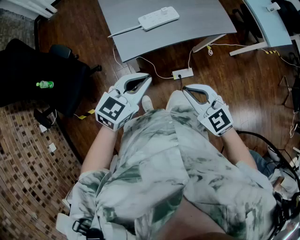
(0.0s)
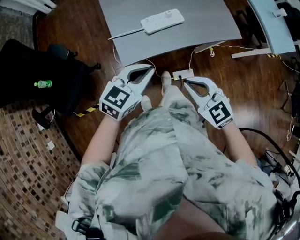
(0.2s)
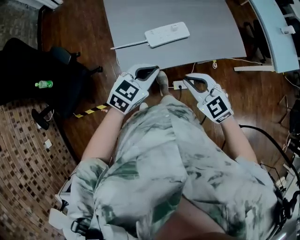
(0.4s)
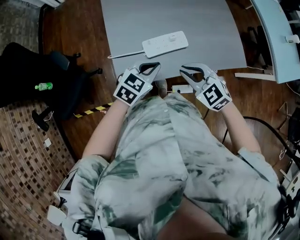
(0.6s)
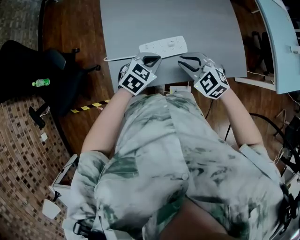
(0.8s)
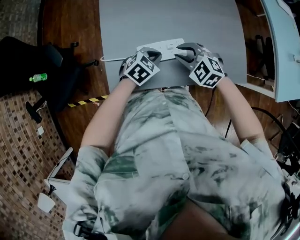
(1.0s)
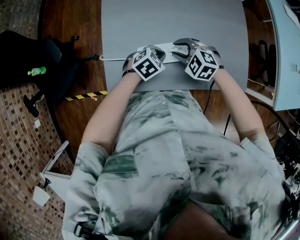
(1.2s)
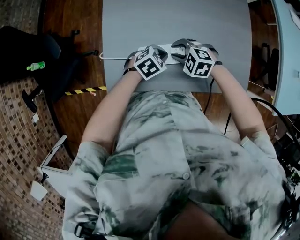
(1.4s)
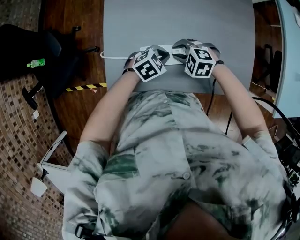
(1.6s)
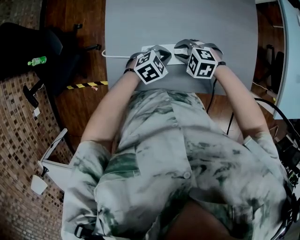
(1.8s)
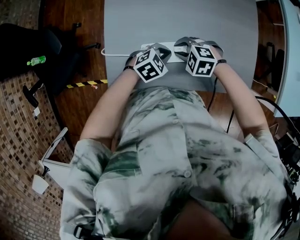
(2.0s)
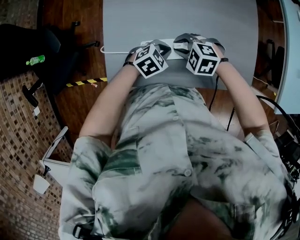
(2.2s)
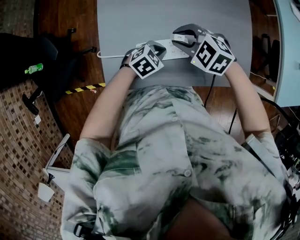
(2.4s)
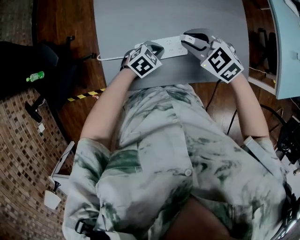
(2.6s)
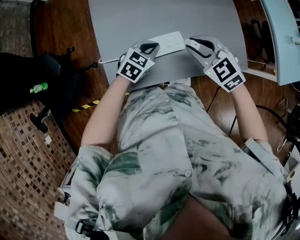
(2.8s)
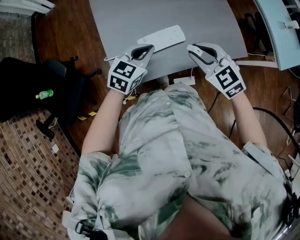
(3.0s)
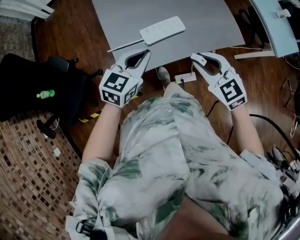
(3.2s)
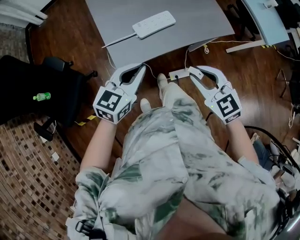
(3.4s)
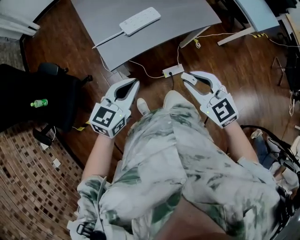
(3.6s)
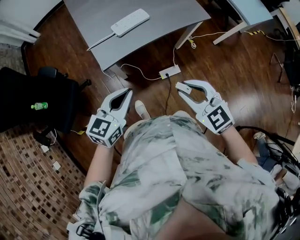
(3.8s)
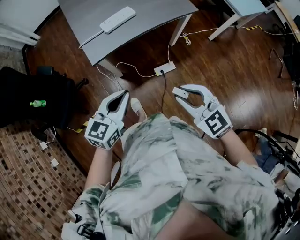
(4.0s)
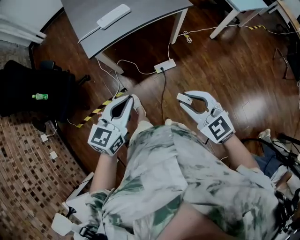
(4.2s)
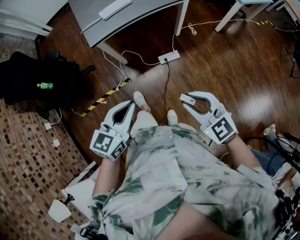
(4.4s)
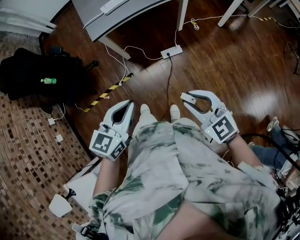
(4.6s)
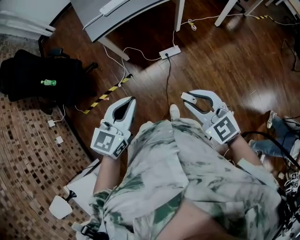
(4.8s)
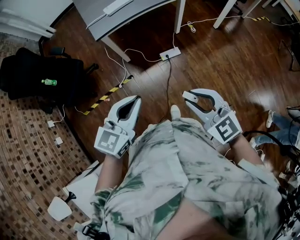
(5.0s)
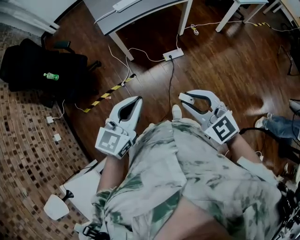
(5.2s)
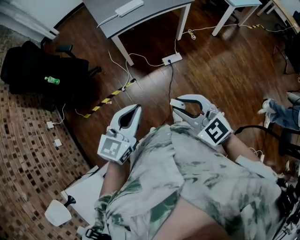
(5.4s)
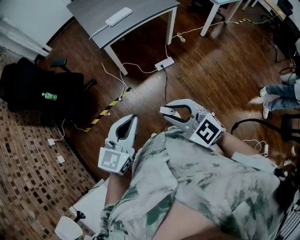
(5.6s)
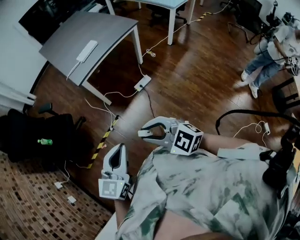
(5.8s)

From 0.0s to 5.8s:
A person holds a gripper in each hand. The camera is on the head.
From 0.0s to 1.4s: The left gripper shifts by roughly 40 cm, and tips its fingers downward by about 30 degrees, while the right gripper ends up some 40 cm from where it was, turns by approximately 60 degrees, and opens.
From 1.4s to 2.8s: The left gripper travels upward by some 5 cm. The right gripper goes approximately 15 cm upward, and swivels roughly 40 degrees.
From 2.8s to 4.4s: Both grippers are carried backward, some 60 cm. The right gripper rotates about 30 degrees.
From 4.4s to 5.8s: The left gripper travels backward and to the left by about 20 cm; the right gripper shifts approximately 25 cm to the left and backward.

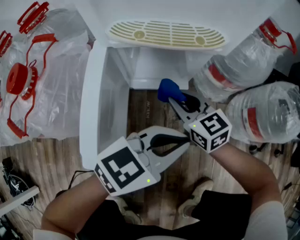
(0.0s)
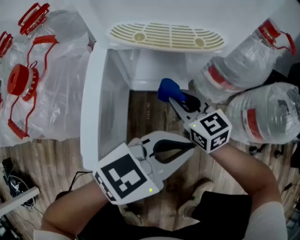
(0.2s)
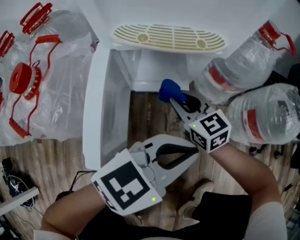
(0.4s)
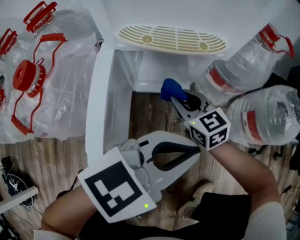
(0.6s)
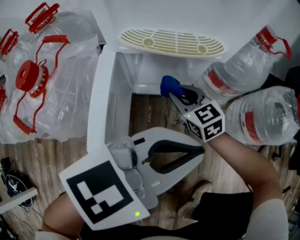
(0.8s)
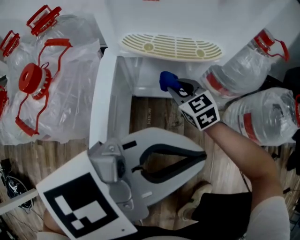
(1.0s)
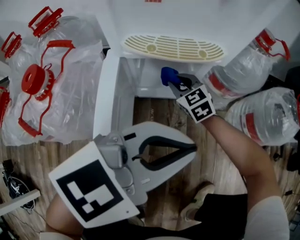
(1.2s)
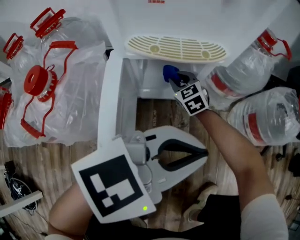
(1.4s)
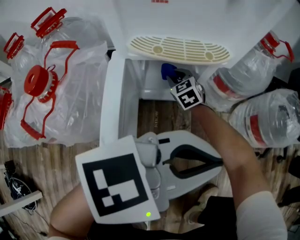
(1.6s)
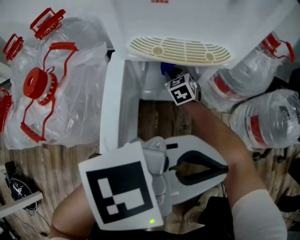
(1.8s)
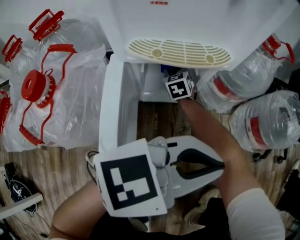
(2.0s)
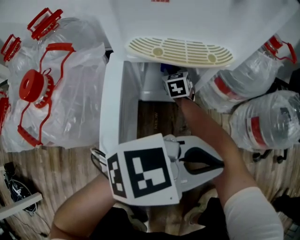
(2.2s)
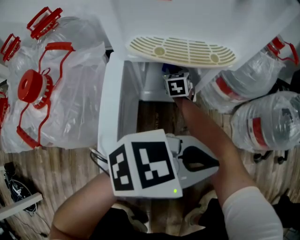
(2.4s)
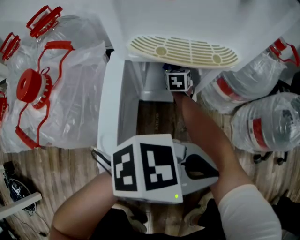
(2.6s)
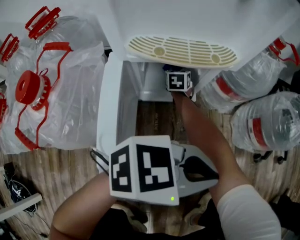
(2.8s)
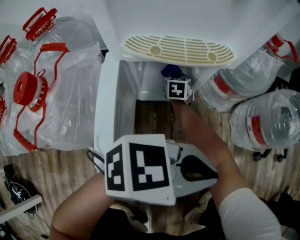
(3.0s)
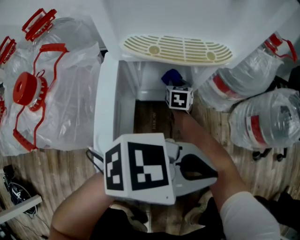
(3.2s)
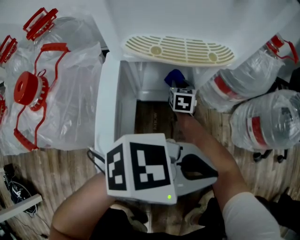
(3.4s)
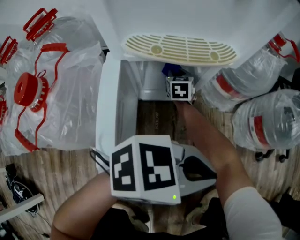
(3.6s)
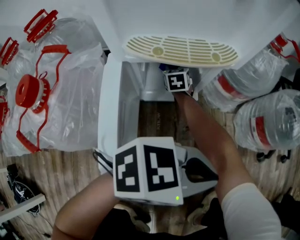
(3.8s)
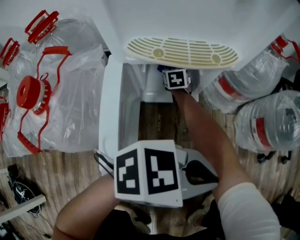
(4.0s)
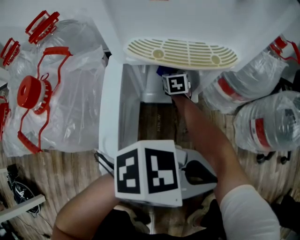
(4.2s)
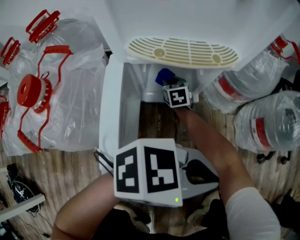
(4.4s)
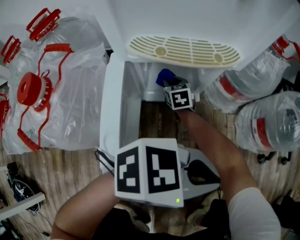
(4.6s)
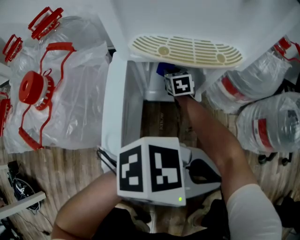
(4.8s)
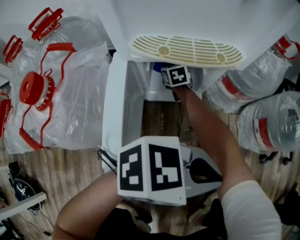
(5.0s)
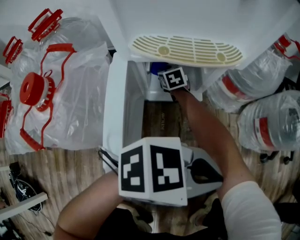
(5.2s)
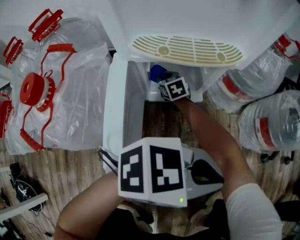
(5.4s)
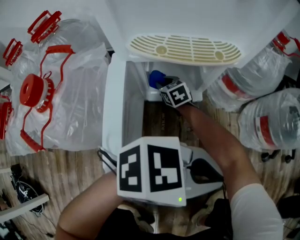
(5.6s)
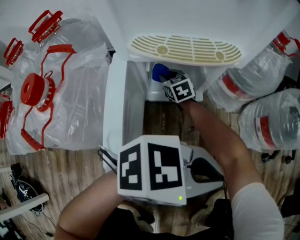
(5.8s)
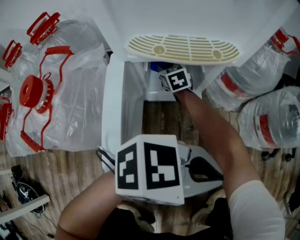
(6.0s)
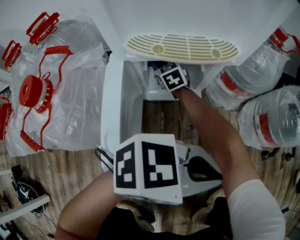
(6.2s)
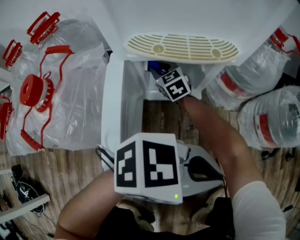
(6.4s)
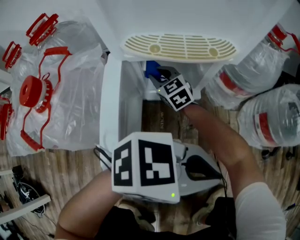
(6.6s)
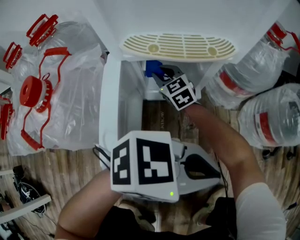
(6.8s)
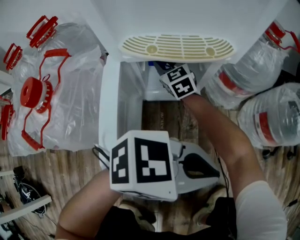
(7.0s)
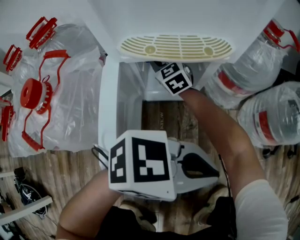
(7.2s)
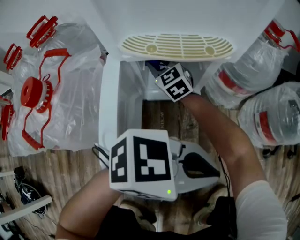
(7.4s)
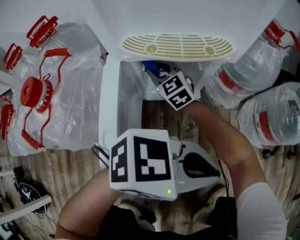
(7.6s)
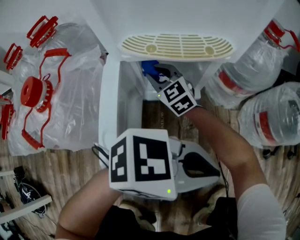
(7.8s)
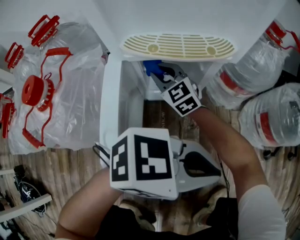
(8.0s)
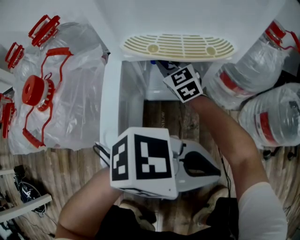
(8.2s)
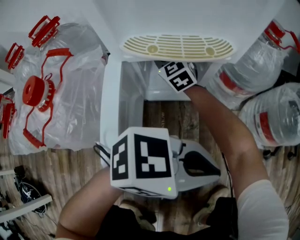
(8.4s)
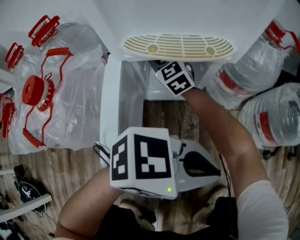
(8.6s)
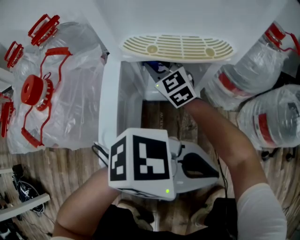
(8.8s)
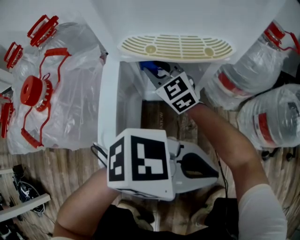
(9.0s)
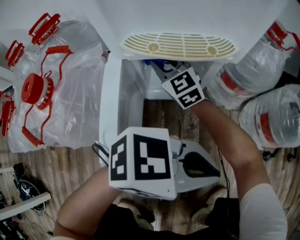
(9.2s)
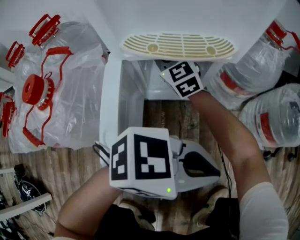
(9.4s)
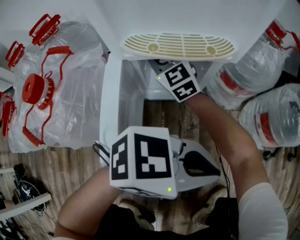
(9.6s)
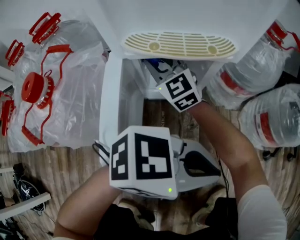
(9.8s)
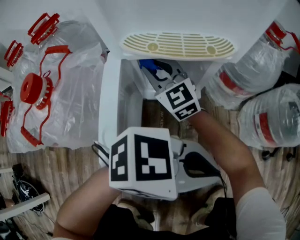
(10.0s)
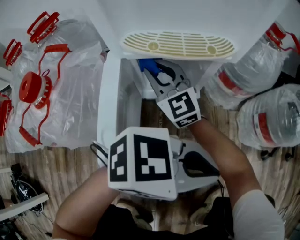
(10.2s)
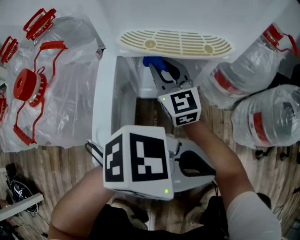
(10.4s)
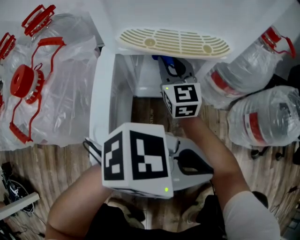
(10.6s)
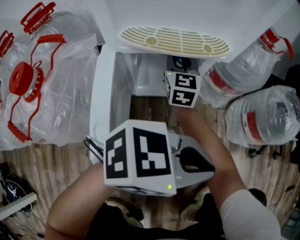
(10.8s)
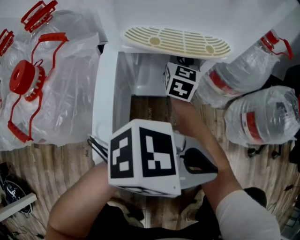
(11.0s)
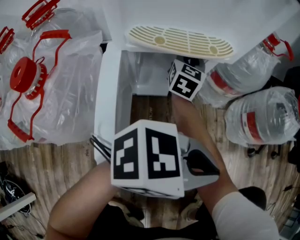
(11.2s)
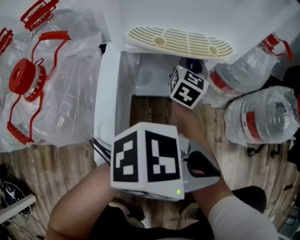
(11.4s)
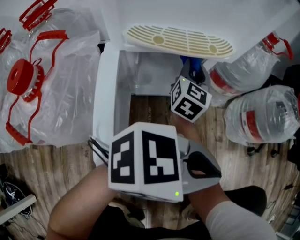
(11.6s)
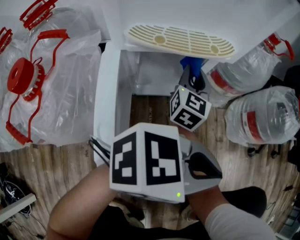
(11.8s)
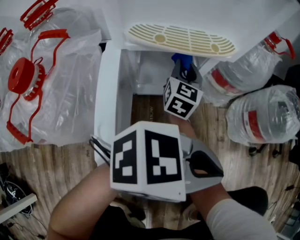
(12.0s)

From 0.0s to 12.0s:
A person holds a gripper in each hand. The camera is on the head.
From 0.0s to 1.6s: The right gripper heads forward, downward and to the left, covering approximately 15 cm, and swivels roughly 30 degrees; the left gripper shifts approximately 15 cm upward, and rotates some 20 degrees.
From 1.6s to 3.0s: The right gripper is displaced downward and forward by about 10 cm, and rotates approximately 40 degrees. The left gripper travels downward by about 5 cm, and swivels about 20 degrees.
From 3.0s to 4.4s: The right gripper goes left and right, some 10 cm each way, reversing 2 times.
From 4.4s to 6.0s: The right gripper changes place by roughly 10 cm.
From 6.0s to 7.6s: The right gripper travels upward by roughly 10 cm, and swivels approximately 20 degrees.
From 9.0s to 10.4s: The right gripper shifts by about 5 cm.
From 10.4s to 12.0s: The right gripper moves roughly 10 cm, and changes its angle by some 40 degrees.

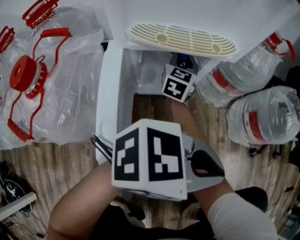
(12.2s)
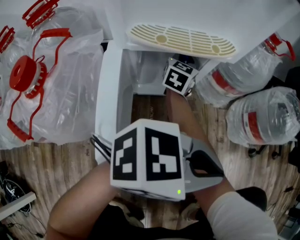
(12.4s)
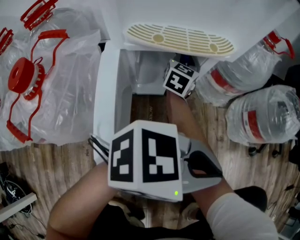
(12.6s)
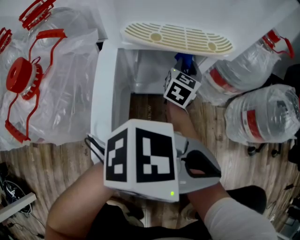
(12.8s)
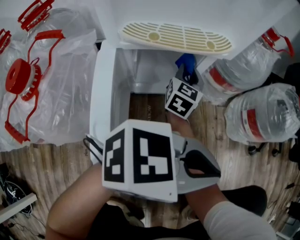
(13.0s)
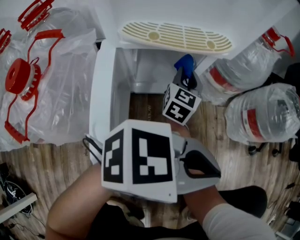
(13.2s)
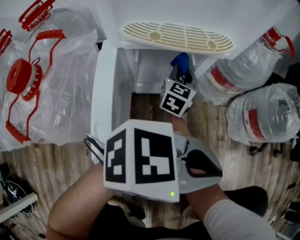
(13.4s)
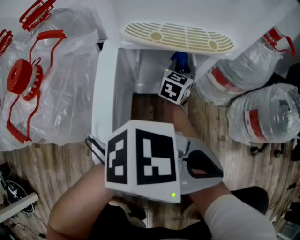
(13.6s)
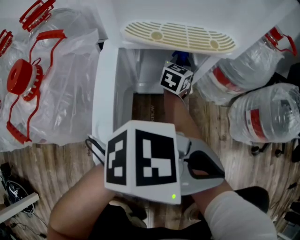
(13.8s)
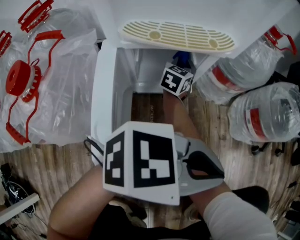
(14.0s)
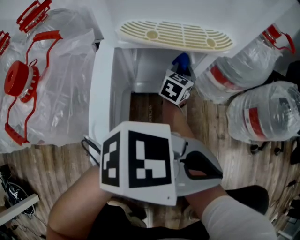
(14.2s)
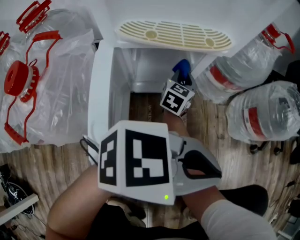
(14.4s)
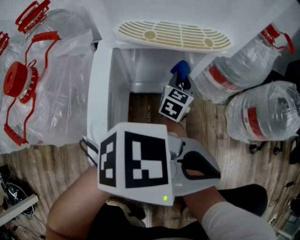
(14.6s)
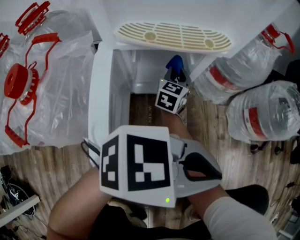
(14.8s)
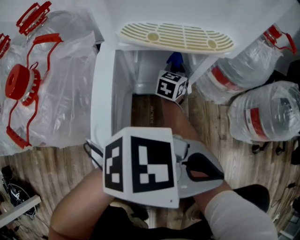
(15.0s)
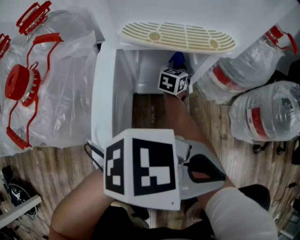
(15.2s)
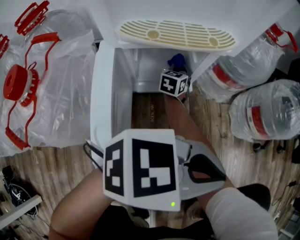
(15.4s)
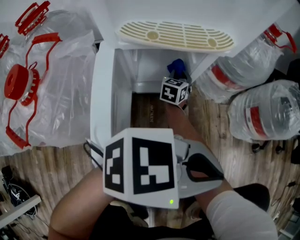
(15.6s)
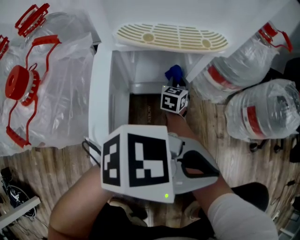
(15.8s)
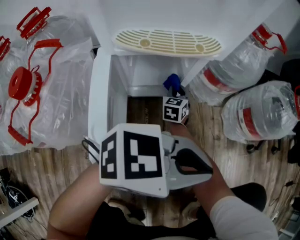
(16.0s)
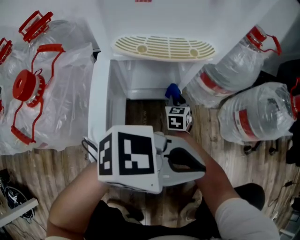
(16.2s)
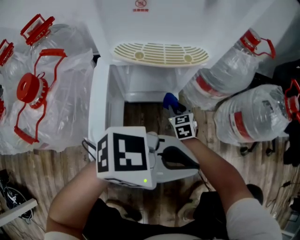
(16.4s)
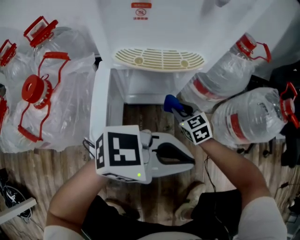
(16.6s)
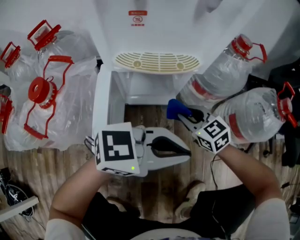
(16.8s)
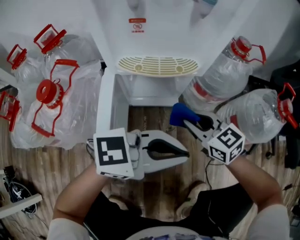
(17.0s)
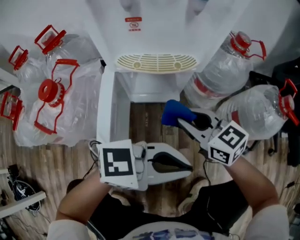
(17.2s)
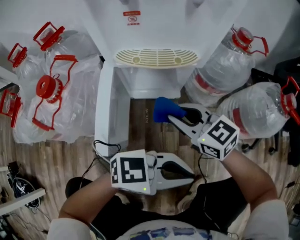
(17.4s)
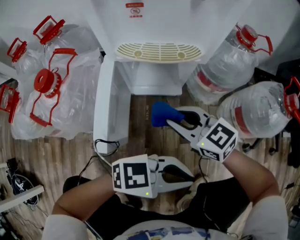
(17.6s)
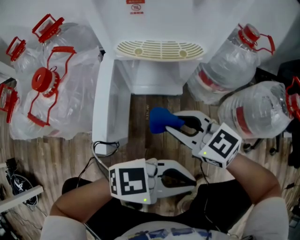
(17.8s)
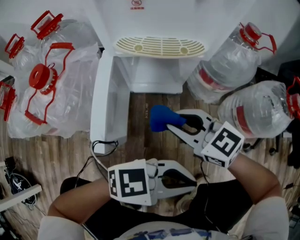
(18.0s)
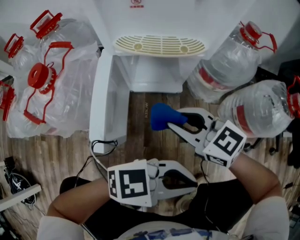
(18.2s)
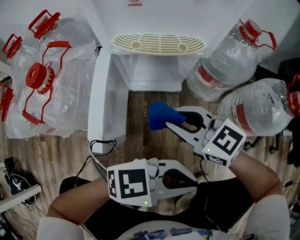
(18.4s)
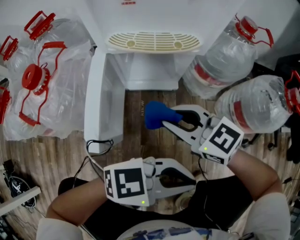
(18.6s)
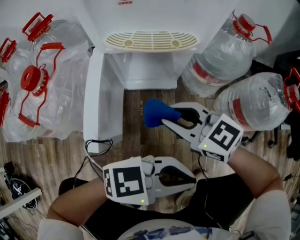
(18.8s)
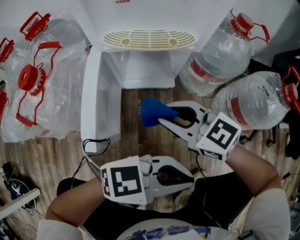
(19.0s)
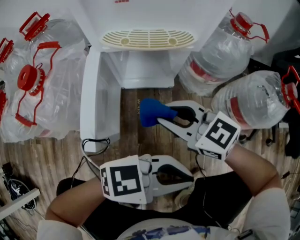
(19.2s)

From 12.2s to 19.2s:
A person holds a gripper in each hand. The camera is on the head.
From 12.2s to 13.6s: The right gripper moves about 5 cm to the right and comes back.
From 13.6s to 15.0s: The right gripper reaches roughly 5 cm to the right, then returns.
From 15.0s to 16.4s: The right gripper heads to the right, covering some 15 cm, and turns by some 30 degrees.
From 16.4s to 17.8s: The right gripper goes some 25 cm upward, and turns by some 50 degrees. Meanwhile the left gripper ends up roughly 10 cm from where it was.
From 17.8s to 19.2s: Both grippers stay put.
